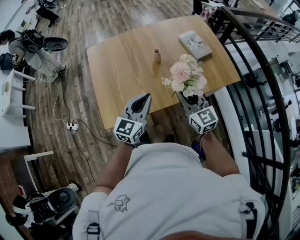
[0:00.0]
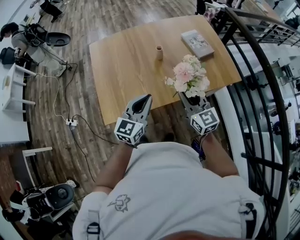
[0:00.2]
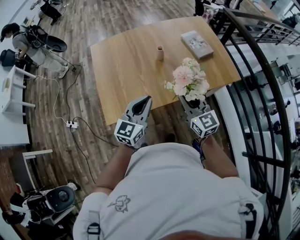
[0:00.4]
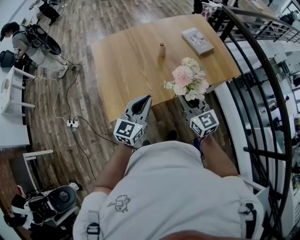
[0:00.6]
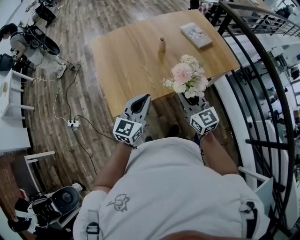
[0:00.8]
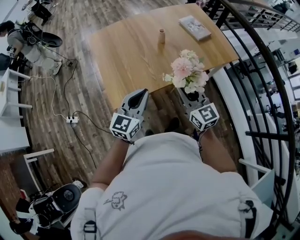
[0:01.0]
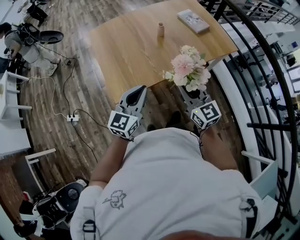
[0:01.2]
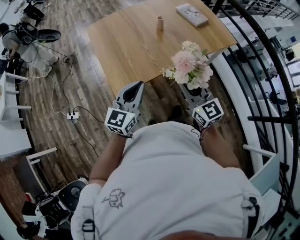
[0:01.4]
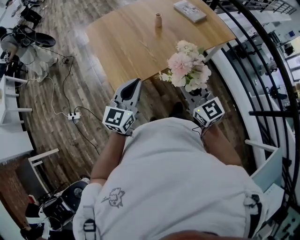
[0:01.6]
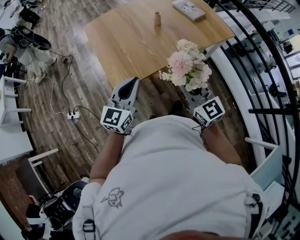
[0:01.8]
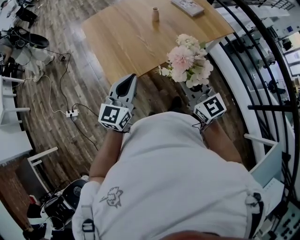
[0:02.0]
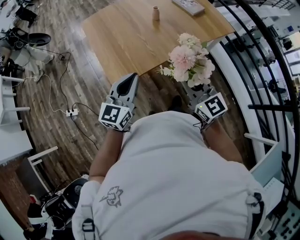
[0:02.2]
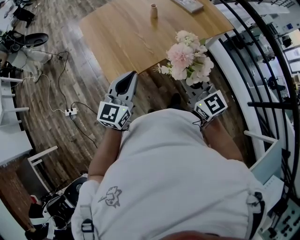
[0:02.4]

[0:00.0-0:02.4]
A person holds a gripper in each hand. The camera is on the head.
0:00.0 to 0:01.2: Both grippers move backward and to the left, some 20 cm.
0:01.2 to 0:02.4: There are only small adjustments of the grippers.

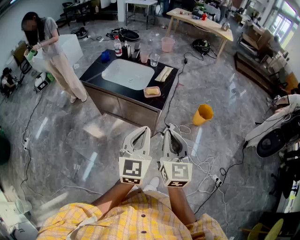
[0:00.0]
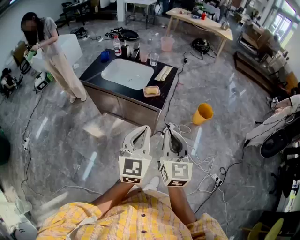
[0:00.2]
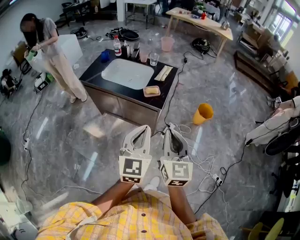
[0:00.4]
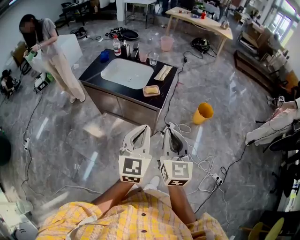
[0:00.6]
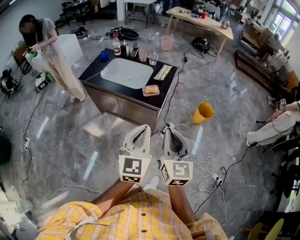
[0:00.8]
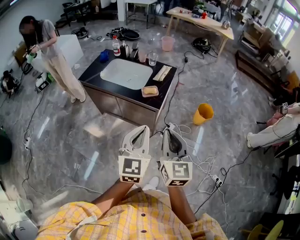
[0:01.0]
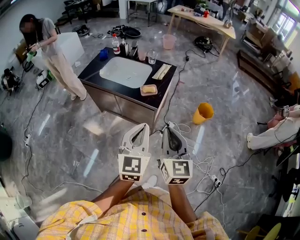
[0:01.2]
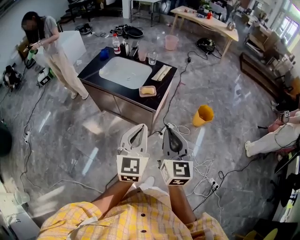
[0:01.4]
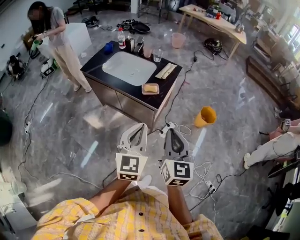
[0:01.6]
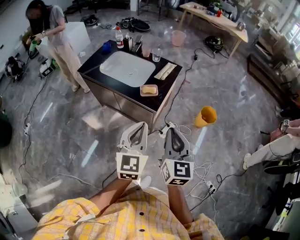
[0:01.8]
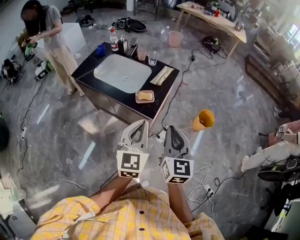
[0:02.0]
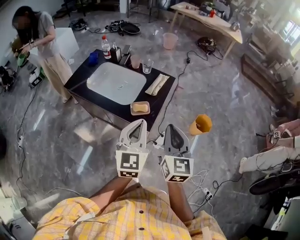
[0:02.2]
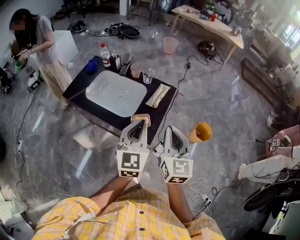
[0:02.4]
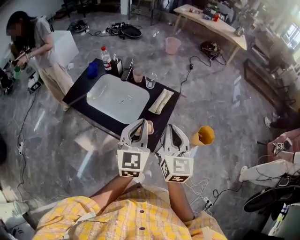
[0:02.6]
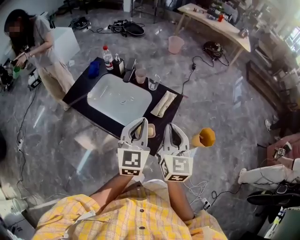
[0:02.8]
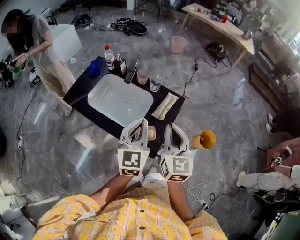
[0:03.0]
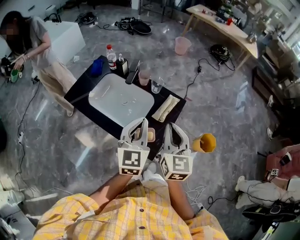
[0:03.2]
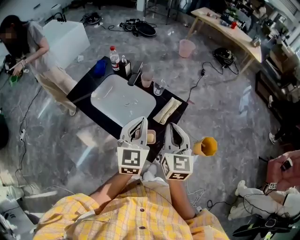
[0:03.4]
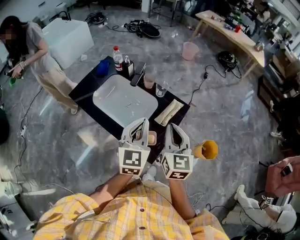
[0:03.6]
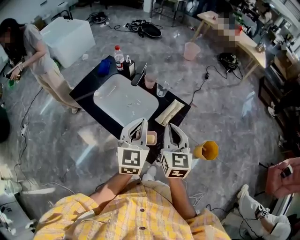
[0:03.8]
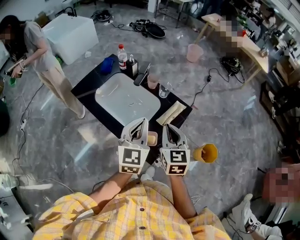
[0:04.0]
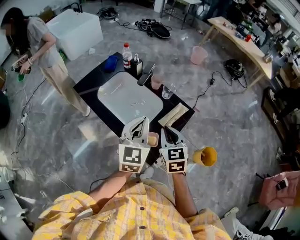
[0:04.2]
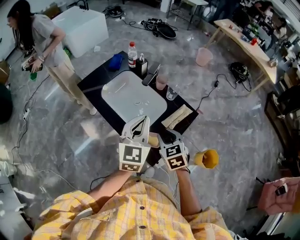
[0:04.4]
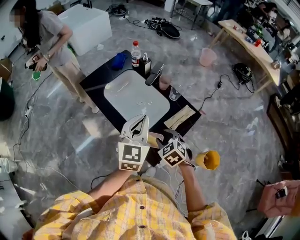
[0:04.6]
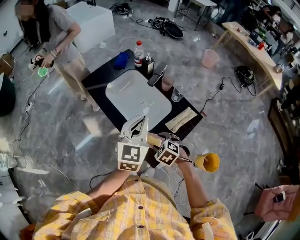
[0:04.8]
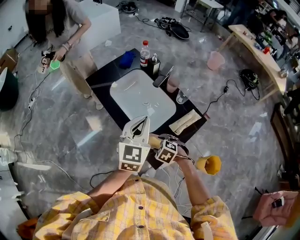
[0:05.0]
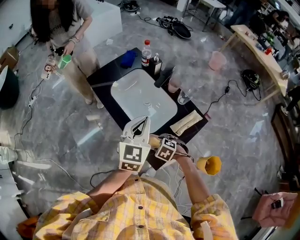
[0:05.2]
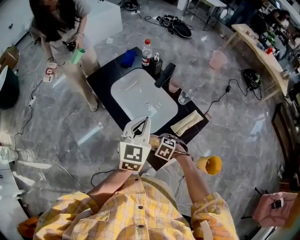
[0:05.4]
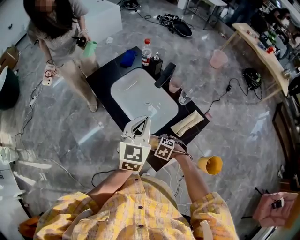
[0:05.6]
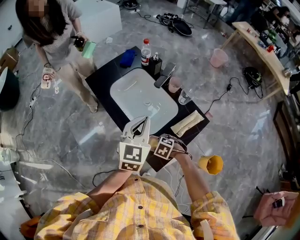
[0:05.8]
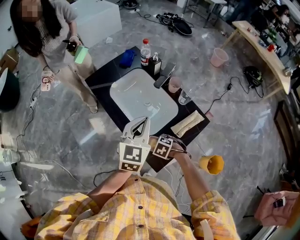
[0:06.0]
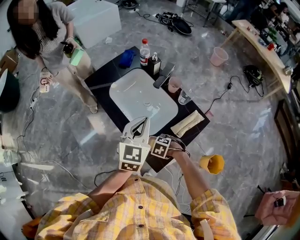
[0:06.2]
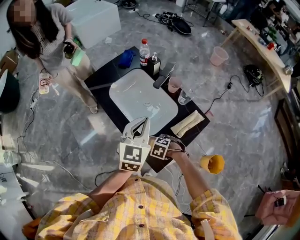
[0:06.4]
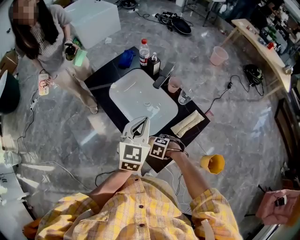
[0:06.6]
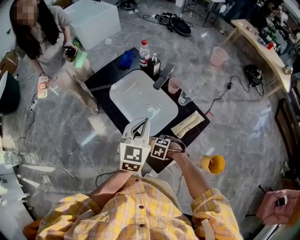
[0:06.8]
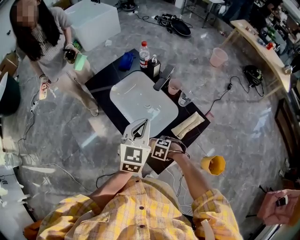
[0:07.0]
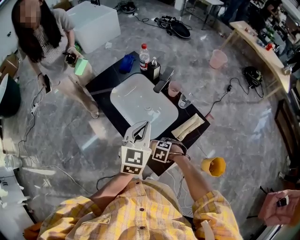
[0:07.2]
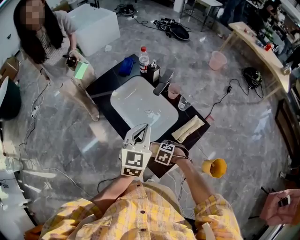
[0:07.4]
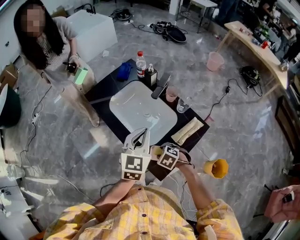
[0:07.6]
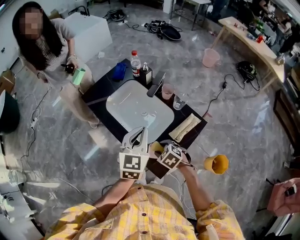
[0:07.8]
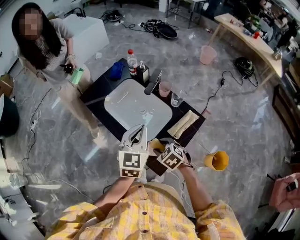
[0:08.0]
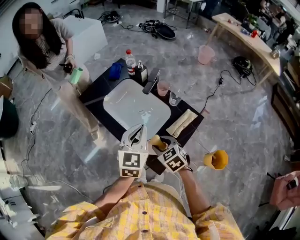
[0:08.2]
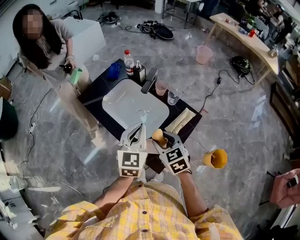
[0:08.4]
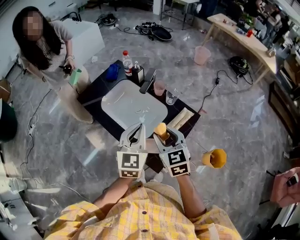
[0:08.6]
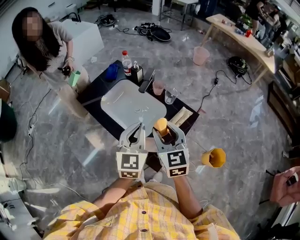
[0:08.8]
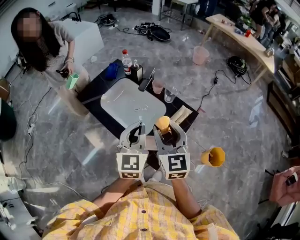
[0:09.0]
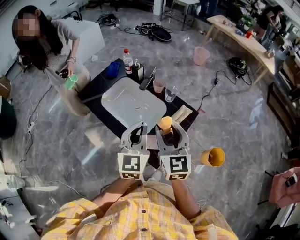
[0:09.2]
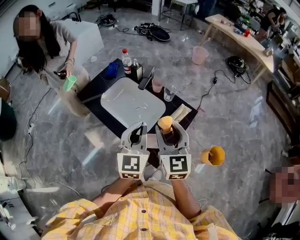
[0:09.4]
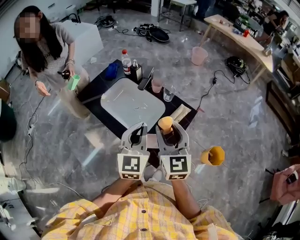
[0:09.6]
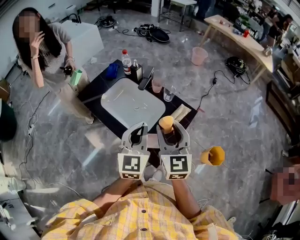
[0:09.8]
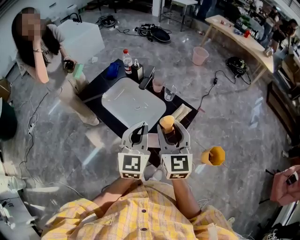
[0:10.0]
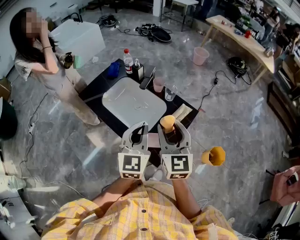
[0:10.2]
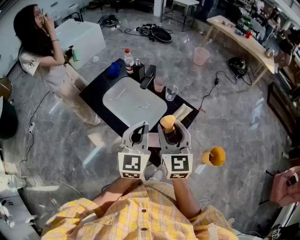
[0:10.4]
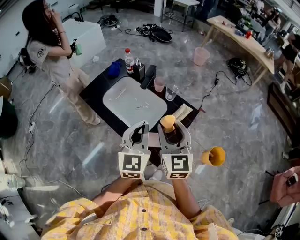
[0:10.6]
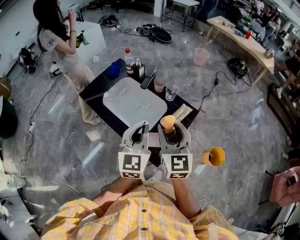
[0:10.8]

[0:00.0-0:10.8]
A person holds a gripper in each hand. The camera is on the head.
0:00.0 to 0:01.6: The two grippers go some 10 cm to the right and forward.
0:01.6 to 0:03.0: Both grippers are carried forward, about 40 cm.
0:03.0 to 0:04.6: The left gripper changes place by approximately 5 cm. The right gripper goes roughly 20 cm downward, points its fingers approximately 40 degrees further downward, and opens up.
0:04.6 to 0:06.2: The right gripper shifts approximately 15 cm downward, and changes its angle by roughly 40 degrees. The left gripper changes place by approximately 5 cm.
0:06.2 to 0:07.8: The right gripper shifts about 10 cm upward, and turns by some 30 degrees.
0:07.8 to 0:09.2: The right gripper travels upward by roughly 25 cm, and tilts its fingers some 50 degrees upward. Meanwhile the left gripper shifts some 10 cm backward and upward.
0:09.2 to 0:10.8: The grippers move only a little.

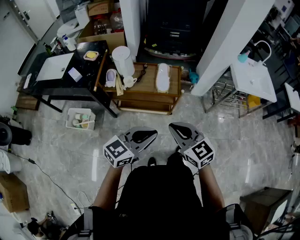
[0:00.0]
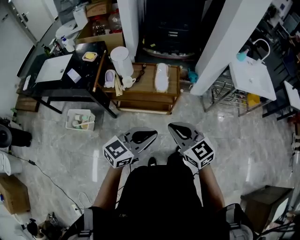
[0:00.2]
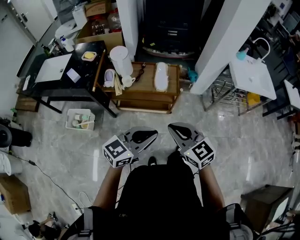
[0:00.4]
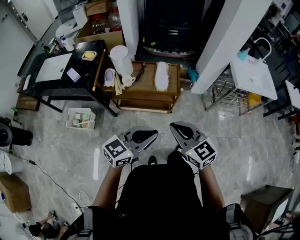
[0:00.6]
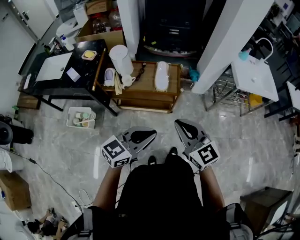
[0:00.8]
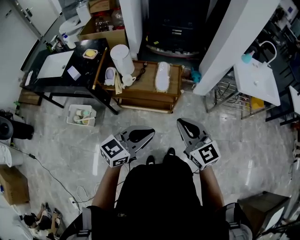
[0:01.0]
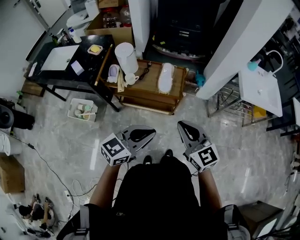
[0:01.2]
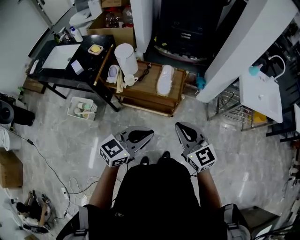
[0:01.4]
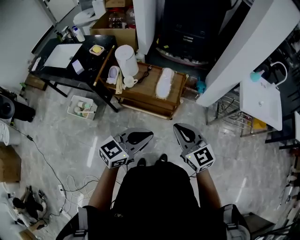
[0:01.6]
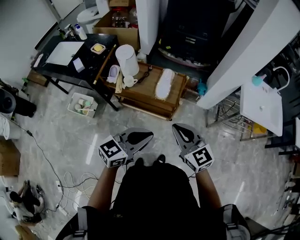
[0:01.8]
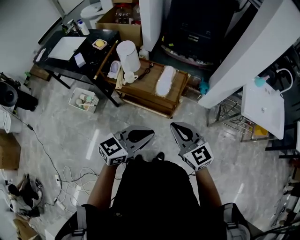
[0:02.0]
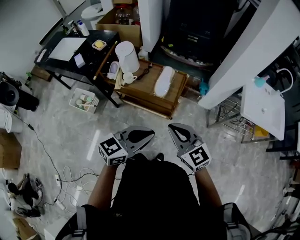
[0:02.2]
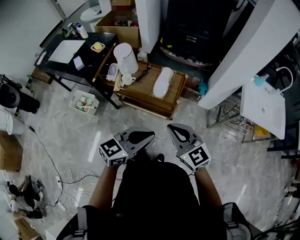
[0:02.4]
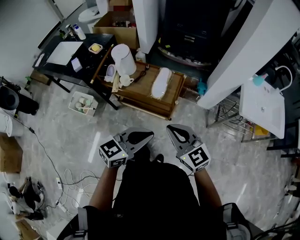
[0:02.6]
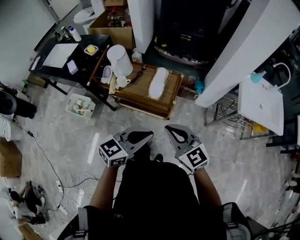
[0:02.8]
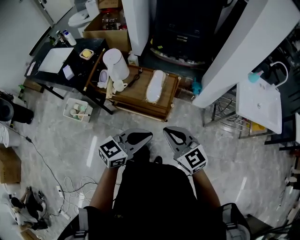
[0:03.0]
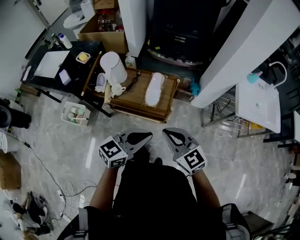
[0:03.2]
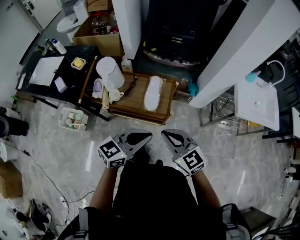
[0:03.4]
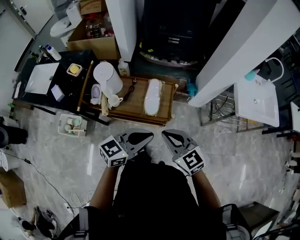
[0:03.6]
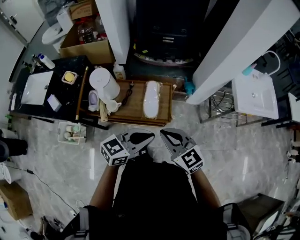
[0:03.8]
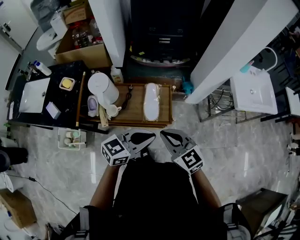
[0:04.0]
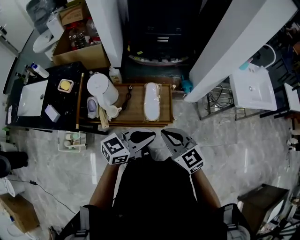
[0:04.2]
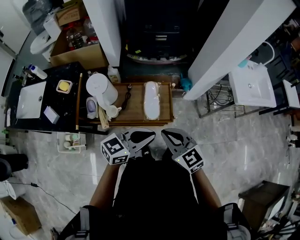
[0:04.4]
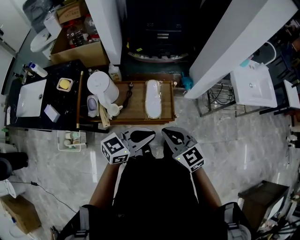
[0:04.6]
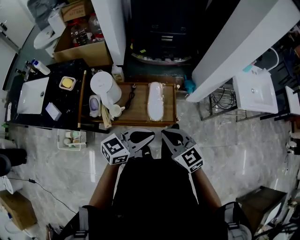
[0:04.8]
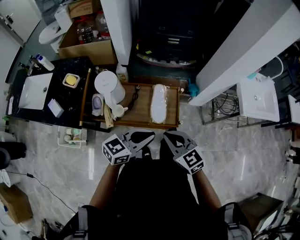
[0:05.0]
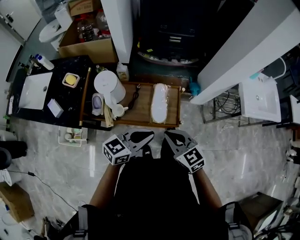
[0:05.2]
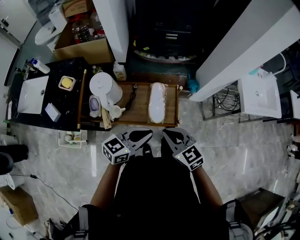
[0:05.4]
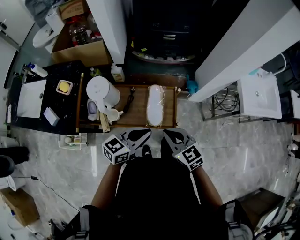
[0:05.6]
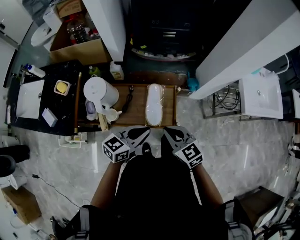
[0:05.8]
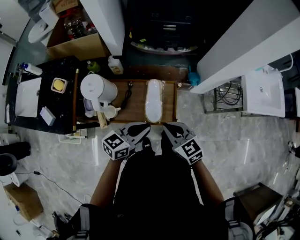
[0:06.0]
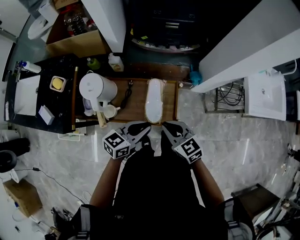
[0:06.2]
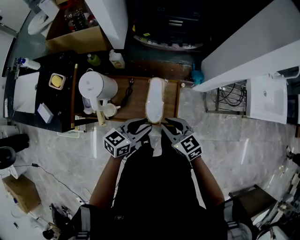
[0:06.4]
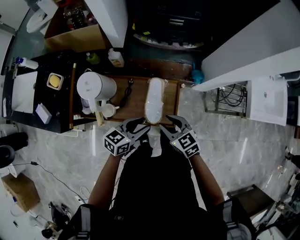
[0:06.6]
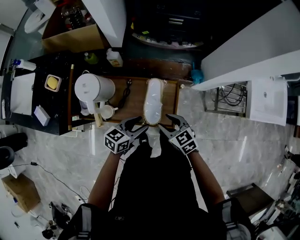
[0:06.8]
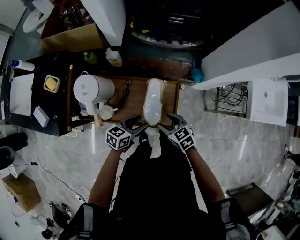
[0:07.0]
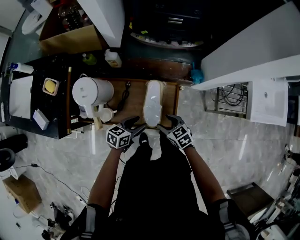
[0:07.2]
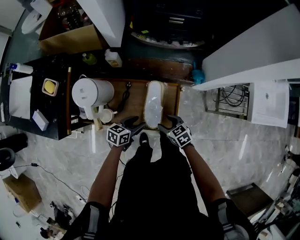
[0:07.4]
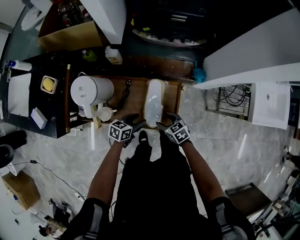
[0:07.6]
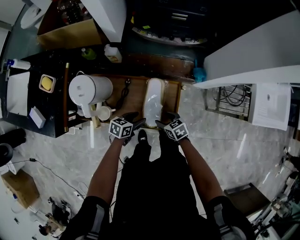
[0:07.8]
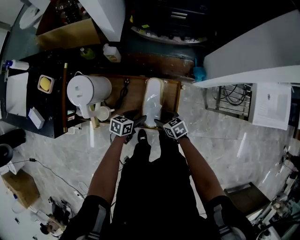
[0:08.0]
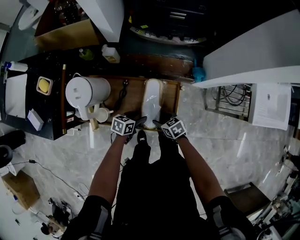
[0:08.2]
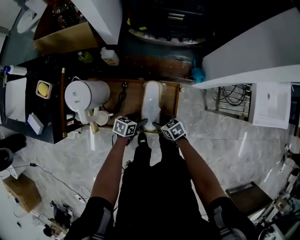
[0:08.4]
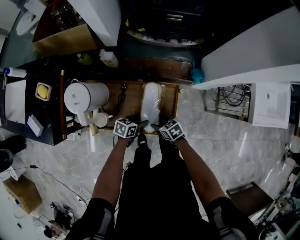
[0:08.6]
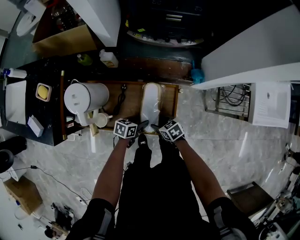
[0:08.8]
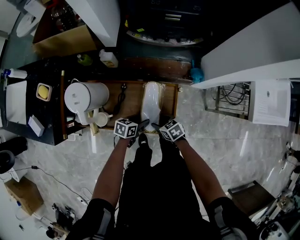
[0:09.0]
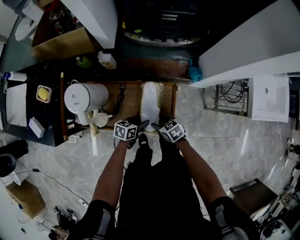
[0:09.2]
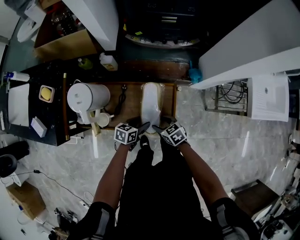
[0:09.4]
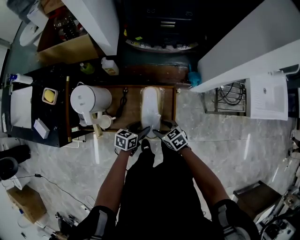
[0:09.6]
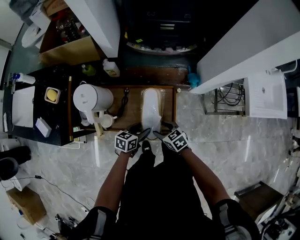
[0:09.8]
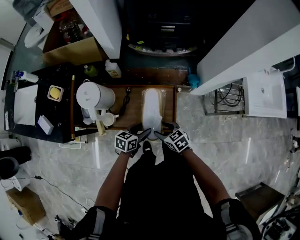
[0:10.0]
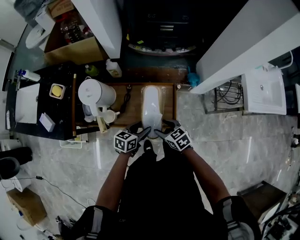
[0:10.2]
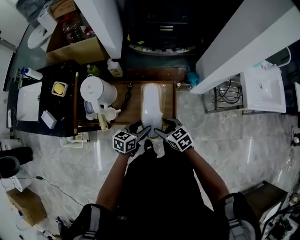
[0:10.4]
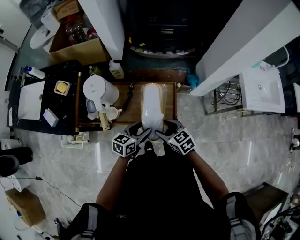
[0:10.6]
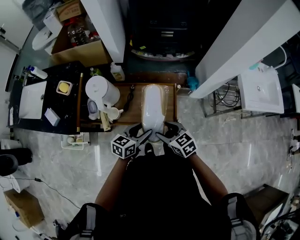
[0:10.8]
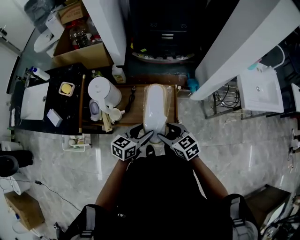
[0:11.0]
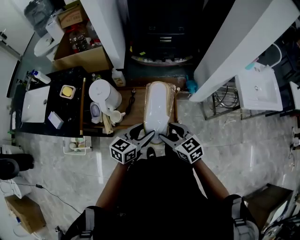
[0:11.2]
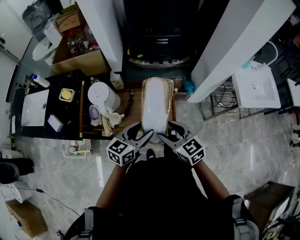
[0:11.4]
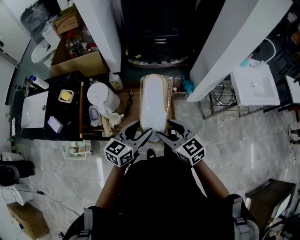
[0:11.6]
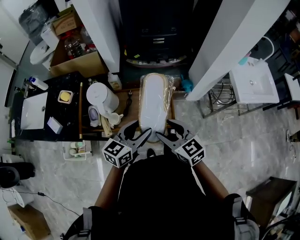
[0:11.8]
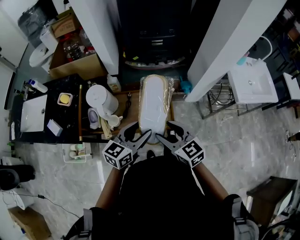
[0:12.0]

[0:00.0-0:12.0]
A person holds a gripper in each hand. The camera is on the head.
0:00.0 to 0:01.6: Both grippers travel together forward and to the right, some 10 cm.
0:01.6 to 0:03.0: The left gripper heads to the right and forward, covering about 10 cm.
0:03.0 to 0:04.4: Both grippers travel together forward and to the left, about 15 cm. The left gripper changes its angle by about 20 degrees.
0:04.4 to 0:06.0: The two grippers go about 15 cm forward and downward.
0:06.0 to 0:07.6: Both grippers travel together downward, roughly 25 cm. The right gripper changes its angle by approximately 30 degrees, and opens up. The left gripper rotates about 30 degrees, and opens up.
0:07.6 to 0:09.0: The left gripper changes place by approximately 5 cm.
0:09.0 to 0:10.4: The two grippers go about 15 cm upward.
0:10.4 to 0:12.0: Both grippers move upward, about 20 cm. The left gripper swivels about 20 degrees. The right gripper rotates about 20 degrees.
